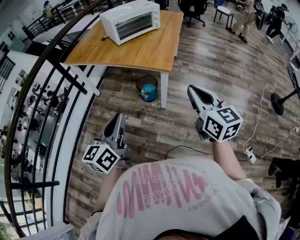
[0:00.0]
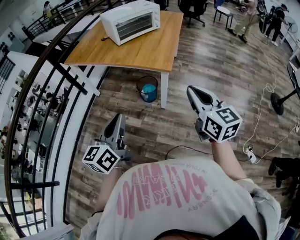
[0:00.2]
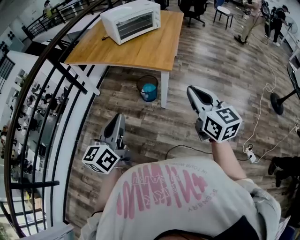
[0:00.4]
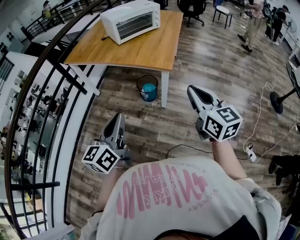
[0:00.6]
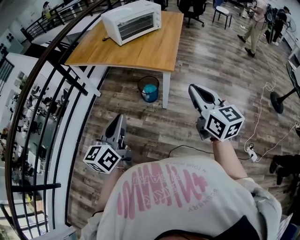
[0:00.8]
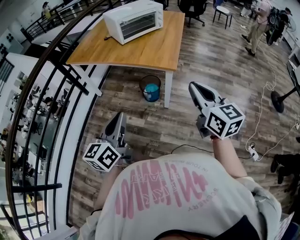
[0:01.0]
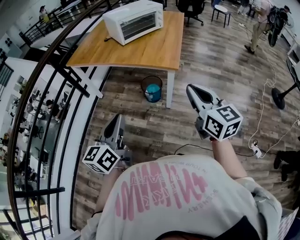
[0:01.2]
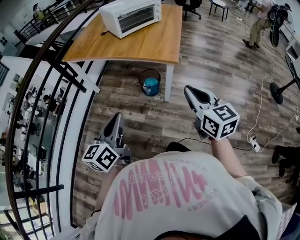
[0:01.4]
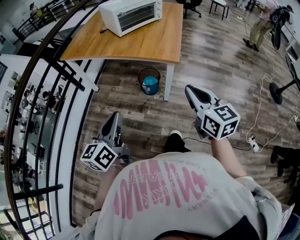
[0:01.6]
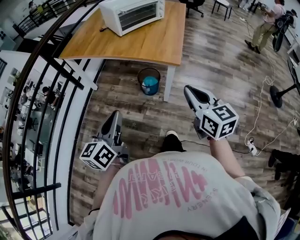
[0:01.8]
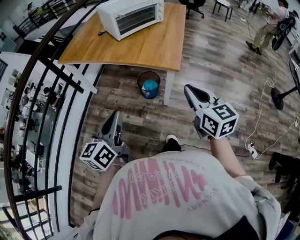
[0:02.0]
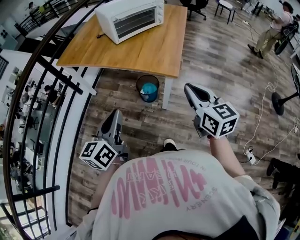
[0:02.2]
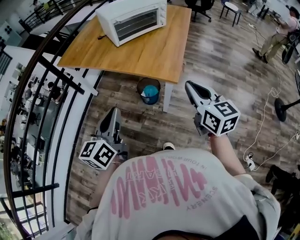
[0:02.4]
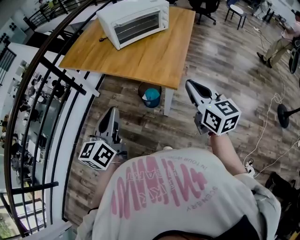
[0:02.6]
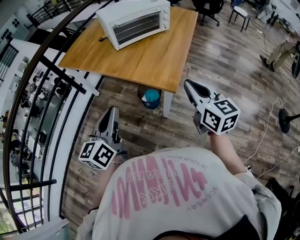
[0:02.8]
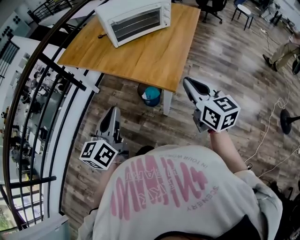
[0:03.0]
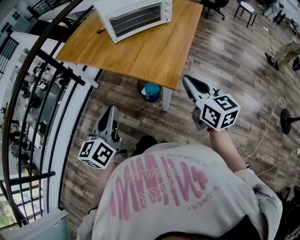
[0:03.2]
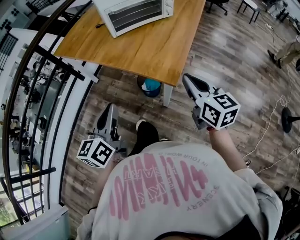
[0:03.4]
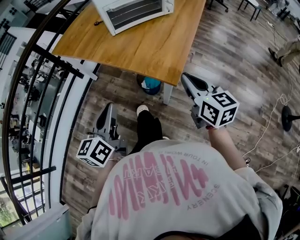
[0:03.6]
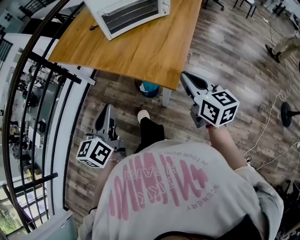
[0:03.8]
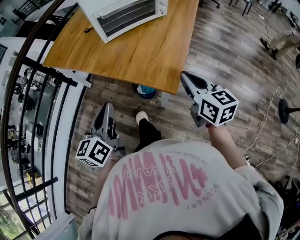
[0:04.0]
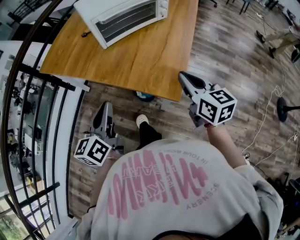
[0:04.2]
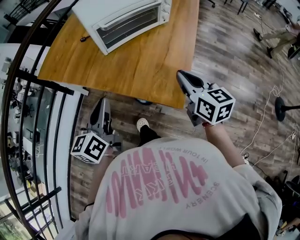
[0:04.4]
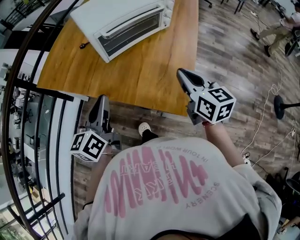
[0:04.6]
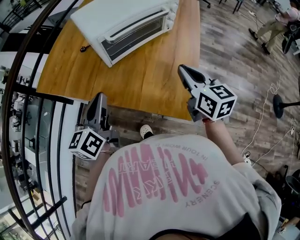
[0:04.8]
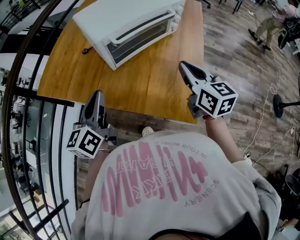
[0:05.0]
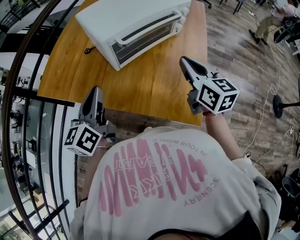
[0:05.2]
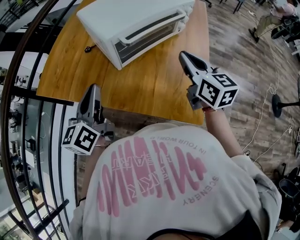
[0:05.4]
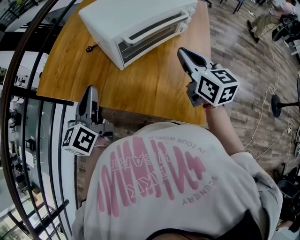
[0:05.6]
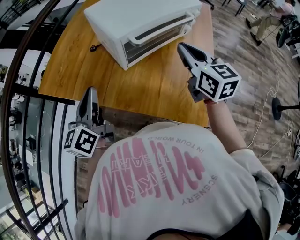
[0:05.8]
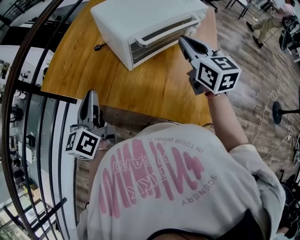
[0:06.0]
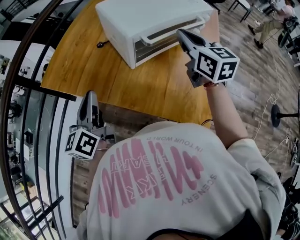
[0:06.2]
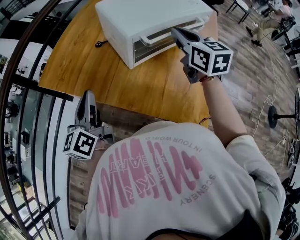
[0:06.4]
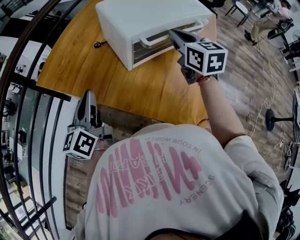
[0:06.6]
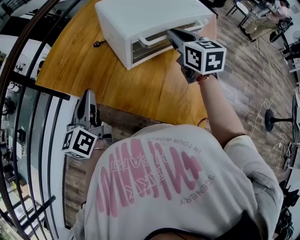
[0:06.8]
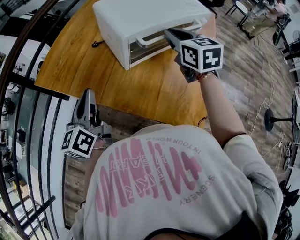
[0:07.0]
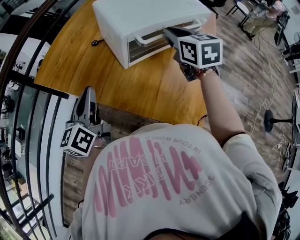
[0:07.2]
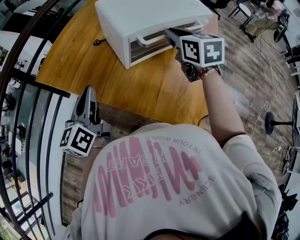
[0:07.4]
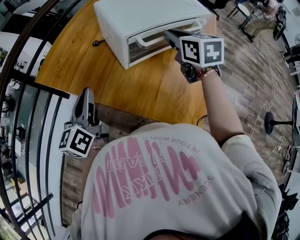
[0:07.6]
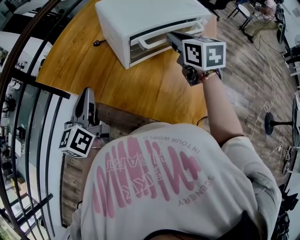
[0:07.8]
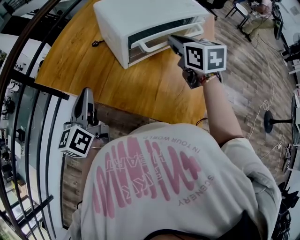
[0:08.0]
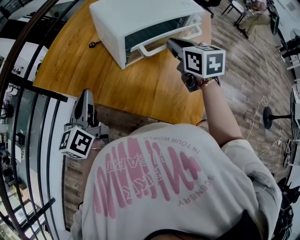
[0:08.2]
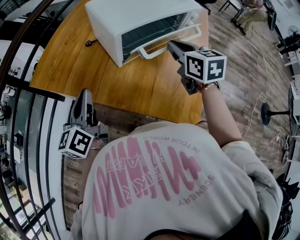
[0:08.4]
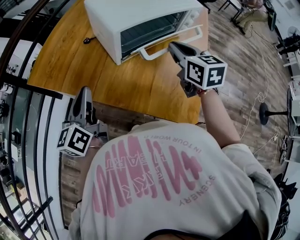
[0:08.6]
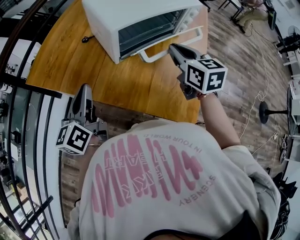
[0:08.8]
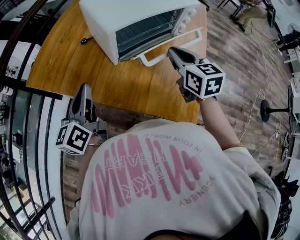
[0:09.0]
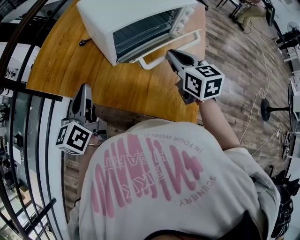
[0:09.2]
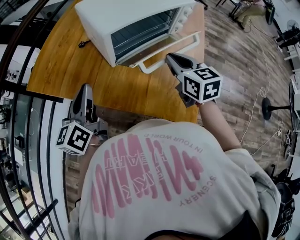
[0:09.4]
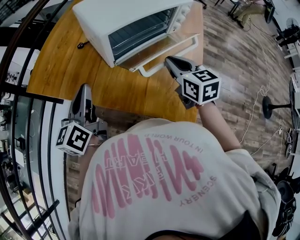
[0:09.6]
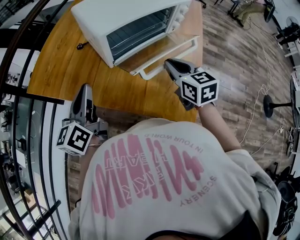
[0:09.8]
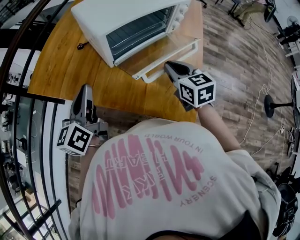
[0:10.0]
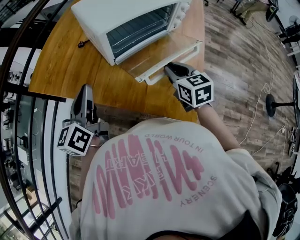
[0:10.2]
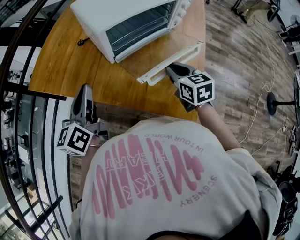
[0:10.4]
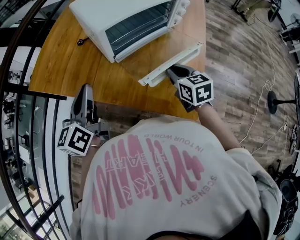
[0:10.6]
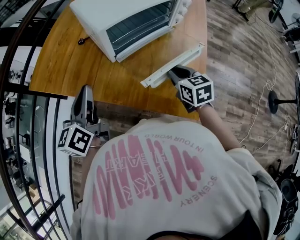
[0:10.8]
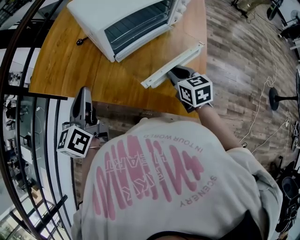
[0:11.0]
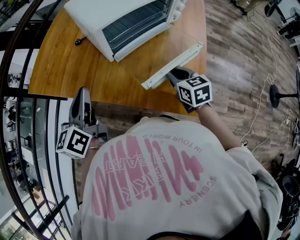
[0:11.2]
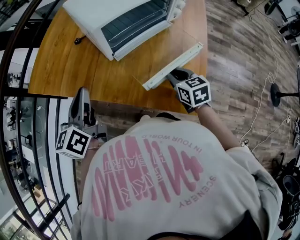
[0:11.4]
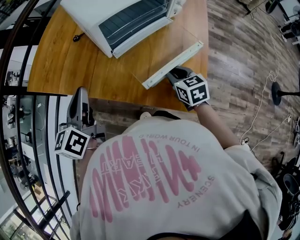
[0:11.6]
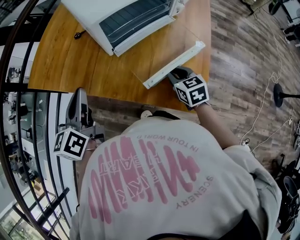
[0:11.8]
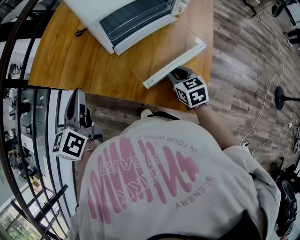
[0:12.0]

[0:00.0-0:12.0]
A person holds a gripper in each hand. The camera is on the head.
0:00.0 to 0:01.6: The grippers both shift to the left by roughly 10 cm.
0:01.6 to 0:03.0: The grippers both shift forward and to the right by roughly 25 cm.
0:03.0 to 0:04.4: Both grippers travel together forward, some 15 cm.
0:04.4 to 0:06.0: The right gripper moves forward and to the left, approximately 25 cm. Meanwhile the left gripper goes some 20 cm to the left and forward.
0:06.0 to 0:07.6: The right gripper is displaced forward by approximately 5 cm.
0:07.6 to 0:09.0: The right gripper heads backward and downward, covering about 10 cm.
0:09.0 to 0:10.4: The right gripper is displaced downward by some 10 cm.
0:10.4 to 0:12.0: The right gripper goes approximately 10 cm downward.

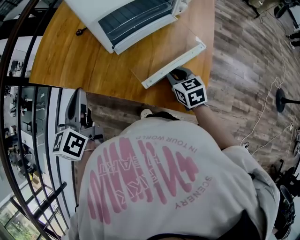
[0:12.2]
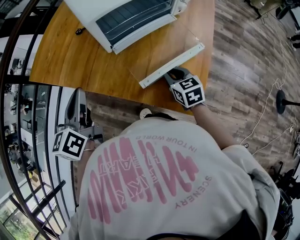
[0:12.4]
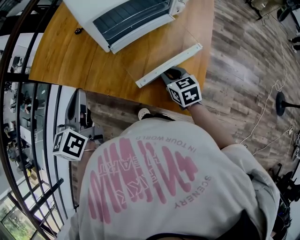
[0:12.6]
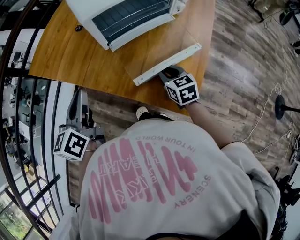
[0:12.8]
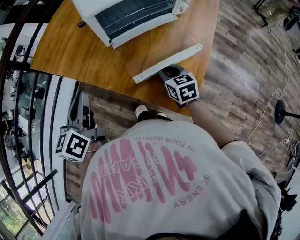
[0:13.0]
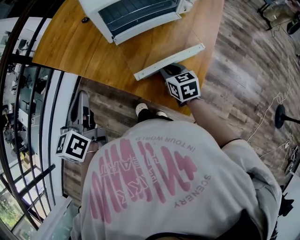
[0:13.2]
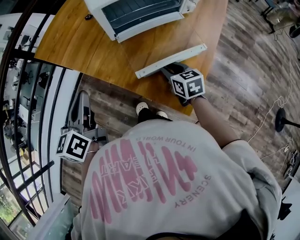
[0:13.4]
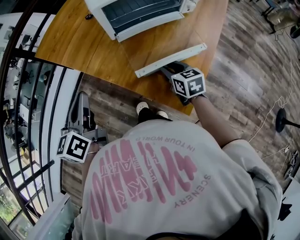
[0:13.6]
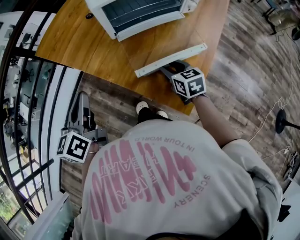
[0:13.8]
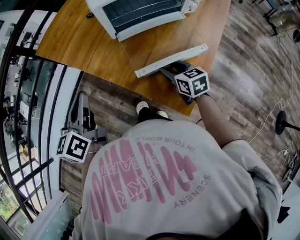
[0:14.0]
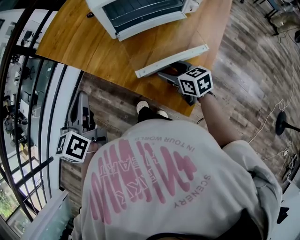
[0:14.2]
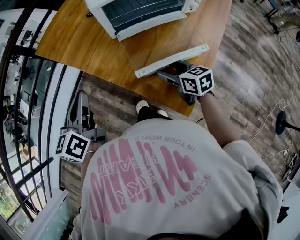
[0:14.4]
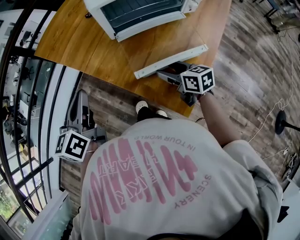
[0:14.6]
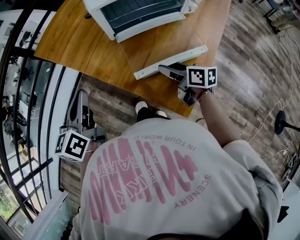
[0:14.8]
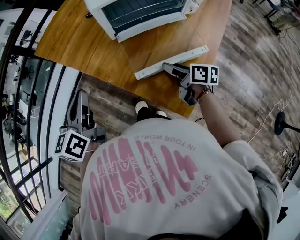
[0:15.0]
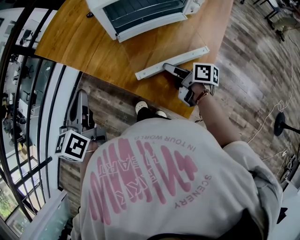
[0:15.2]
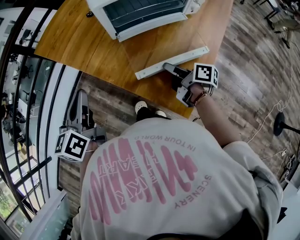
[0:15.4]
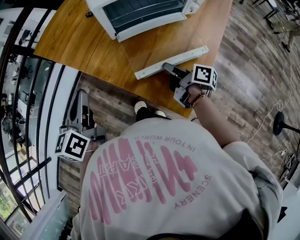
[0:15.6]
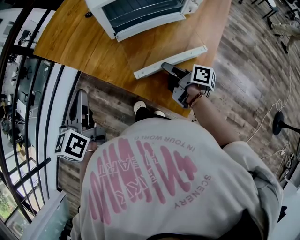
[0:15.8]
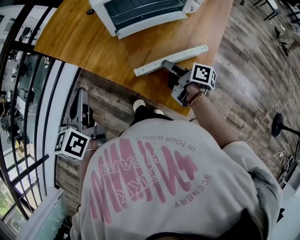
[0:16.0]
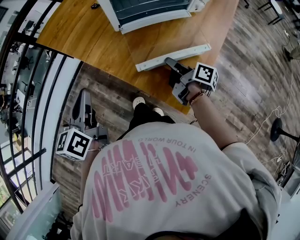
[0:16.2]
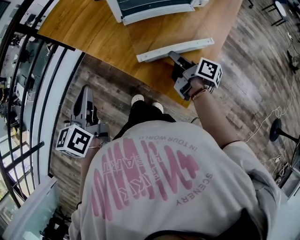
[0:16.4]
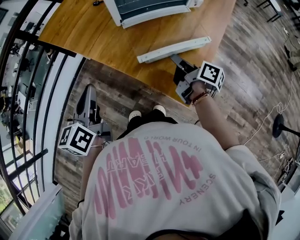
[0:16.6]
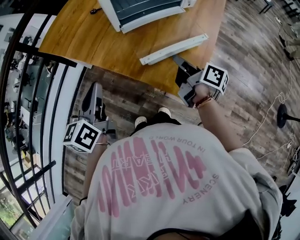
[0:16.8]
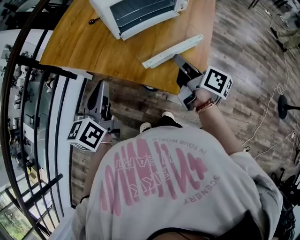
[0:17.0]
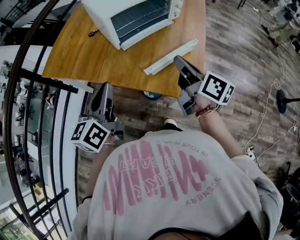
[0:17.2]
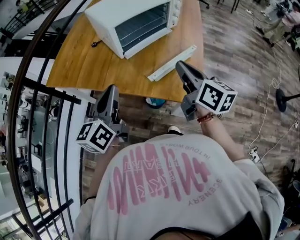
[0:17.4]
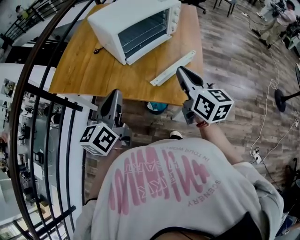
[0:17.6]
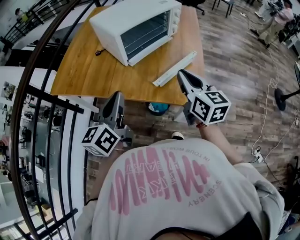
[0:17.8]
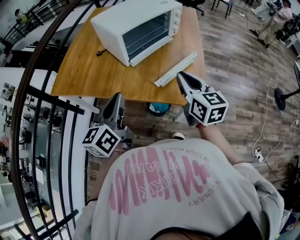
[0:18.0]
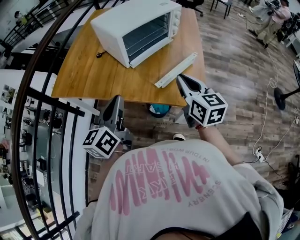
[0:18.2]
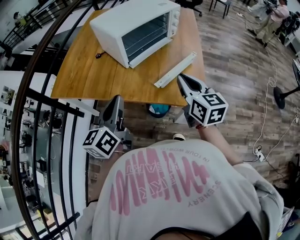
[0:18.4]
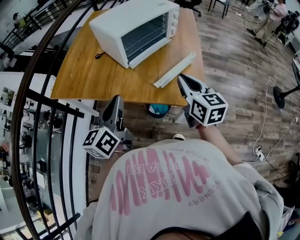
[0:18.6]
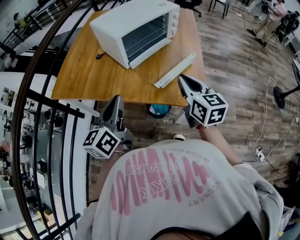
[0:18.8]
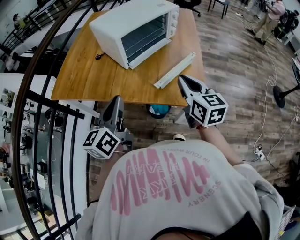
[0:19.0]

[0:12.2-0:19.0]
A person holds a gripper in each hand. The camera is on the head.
0:12.2 to 0:13.6: The left gripper moves backward, approximately 10 cm.
0:13.6 to 0:15.0: The right gripper changes its angle by about 40 degrees, and opens, then closes once more.
0:15.0 to 0:16.2: The right gripper swivels approximately 30 degrees, and closes.
0:16.2 to 0:17.6: The right gripper heads upward, covering some 20 cm, and twists approximately 50 degrees counterclockwise, seen from behind. Meanwhile the left gripper goes about 5 cm upward, and rotates roughly 30 degrees.
0:17.6 to 0:19.0: There are only small adjustments of the grippers.

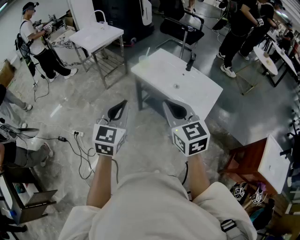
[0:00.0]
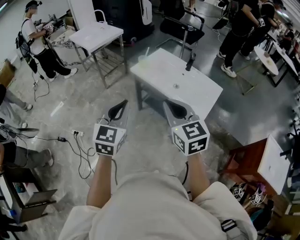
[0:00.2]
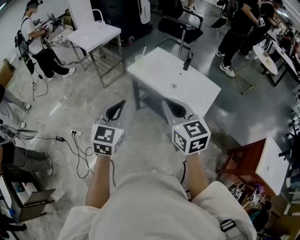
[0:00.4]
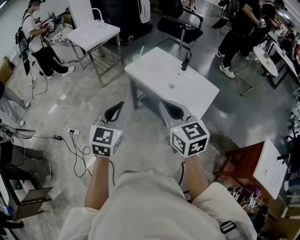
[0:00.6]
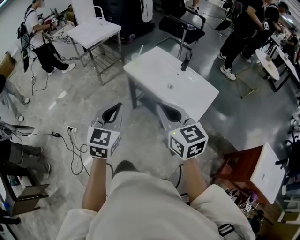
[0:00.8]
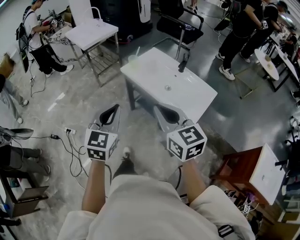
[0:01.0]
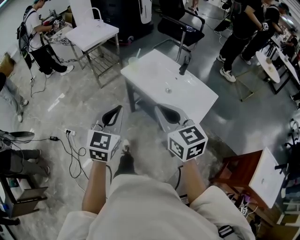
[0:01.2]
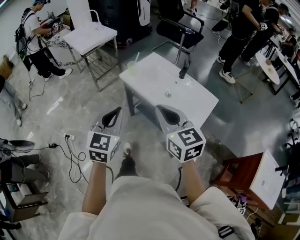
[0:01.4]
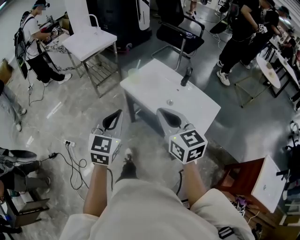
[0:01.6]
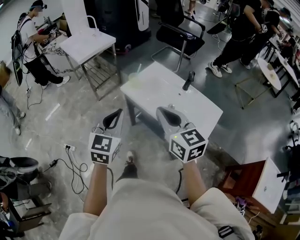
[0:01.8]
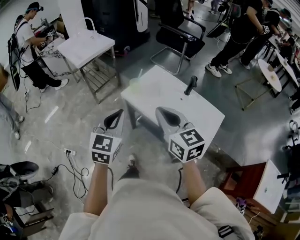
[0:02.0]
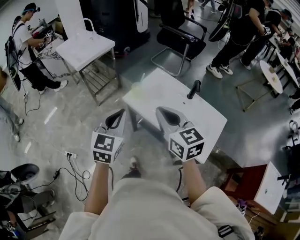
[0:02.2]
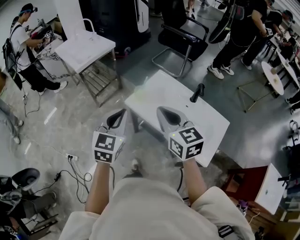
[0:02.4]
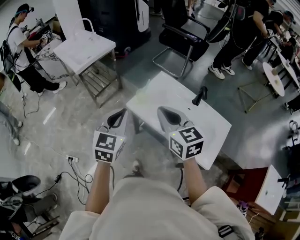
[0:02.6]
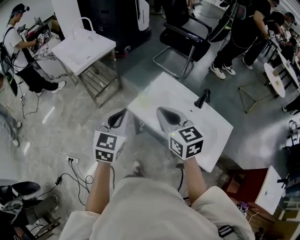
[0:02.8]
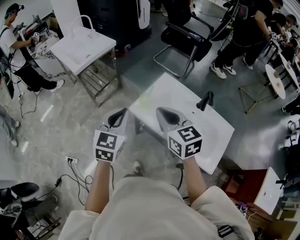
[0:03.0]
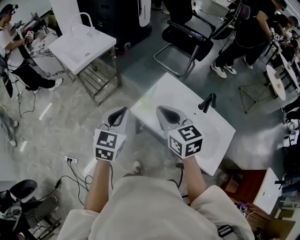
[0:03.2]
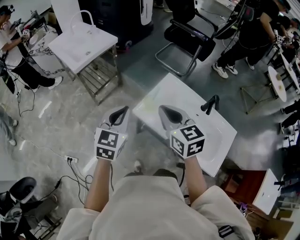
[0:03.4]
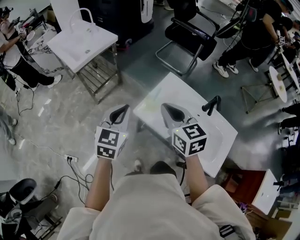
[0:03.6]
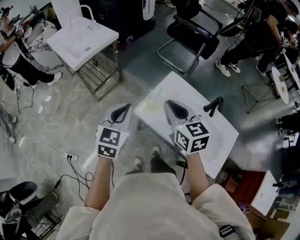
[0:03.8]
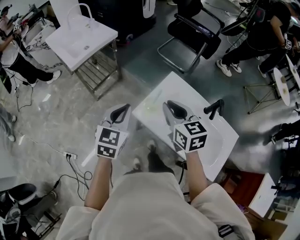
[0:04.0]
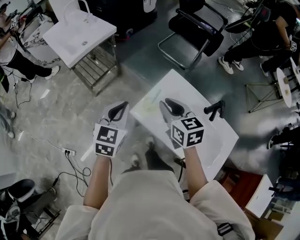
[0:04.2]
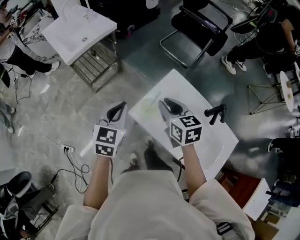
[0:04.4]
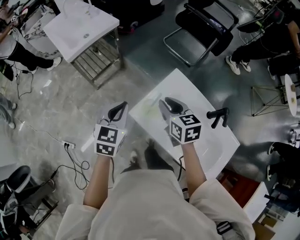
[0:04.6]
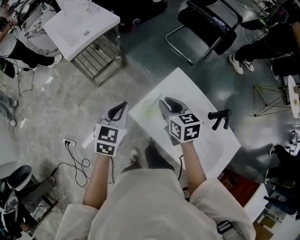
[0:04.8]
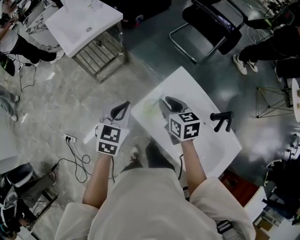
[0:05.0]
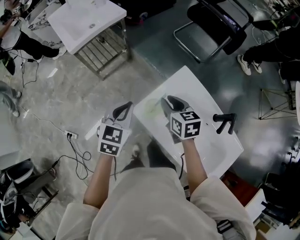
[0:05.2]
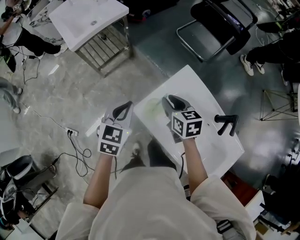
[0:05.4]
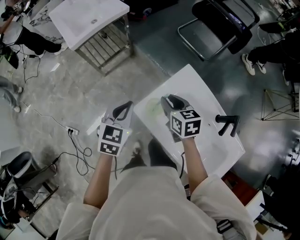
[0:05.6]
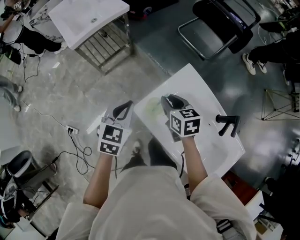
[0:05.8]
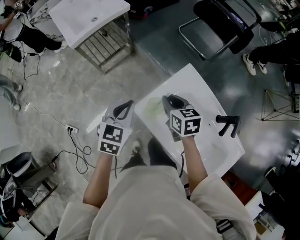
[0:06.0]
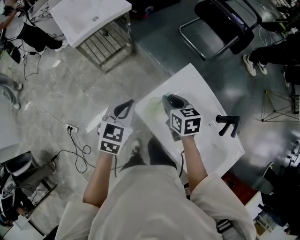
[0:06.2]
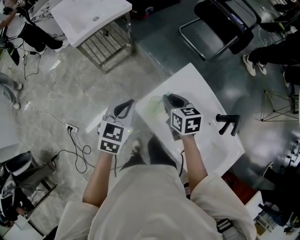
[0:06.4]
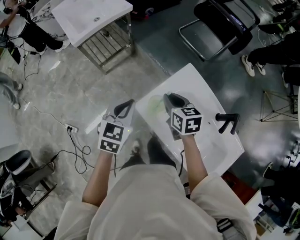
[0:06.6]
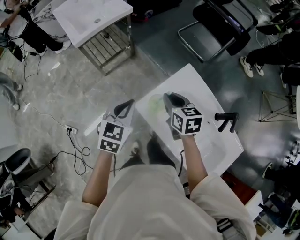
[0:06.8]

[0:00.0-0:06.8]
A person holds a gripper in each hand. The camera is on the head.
0:00.0 to 0:01.4: The grippers both shift forward and to the right by about 10 cm.
0:01.4 to 0:02.8: The two grippers go roughly 35 cm forward.
0:02.8 to 0:04.0: Both grippers travel together forward, roughly 15 cm.
0:04.0 to 0:05.4: The two grippers go approximately 15 cm downward and forward.
0:05.4 to 0:06.8: The grippers move only a little.
